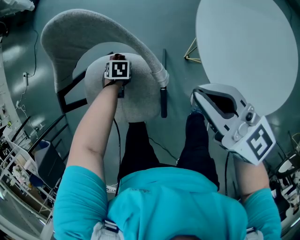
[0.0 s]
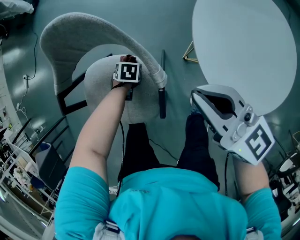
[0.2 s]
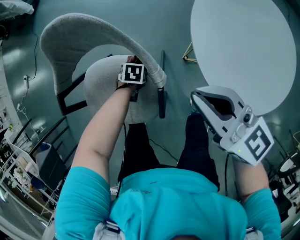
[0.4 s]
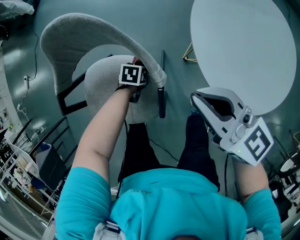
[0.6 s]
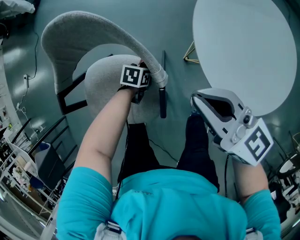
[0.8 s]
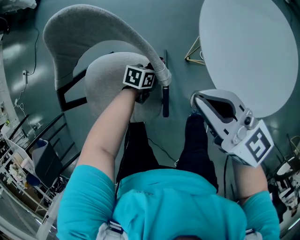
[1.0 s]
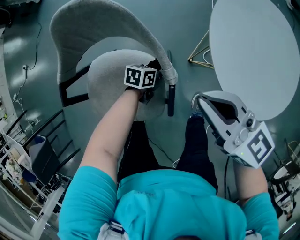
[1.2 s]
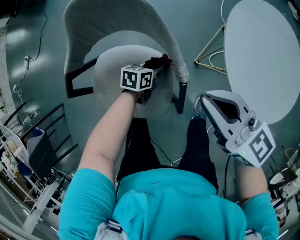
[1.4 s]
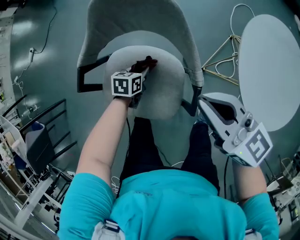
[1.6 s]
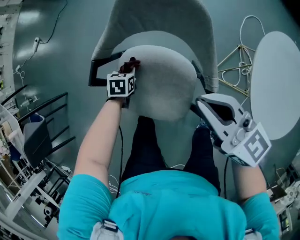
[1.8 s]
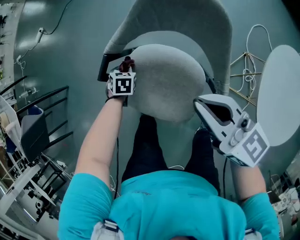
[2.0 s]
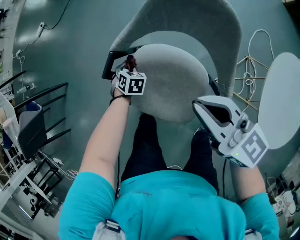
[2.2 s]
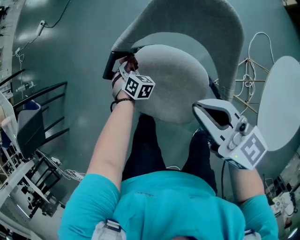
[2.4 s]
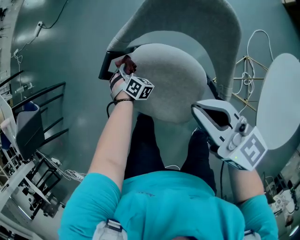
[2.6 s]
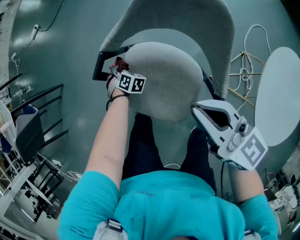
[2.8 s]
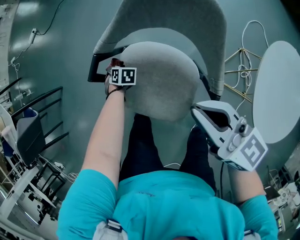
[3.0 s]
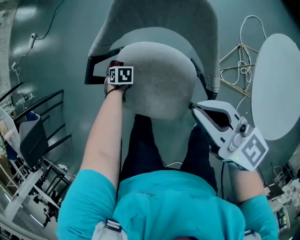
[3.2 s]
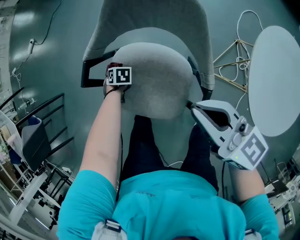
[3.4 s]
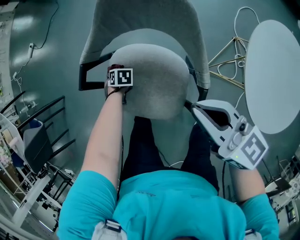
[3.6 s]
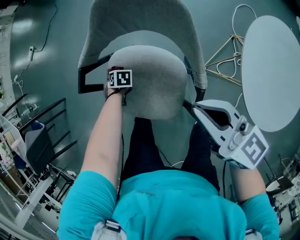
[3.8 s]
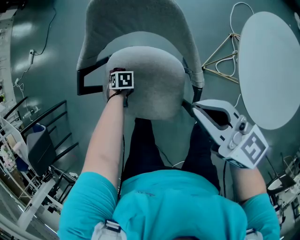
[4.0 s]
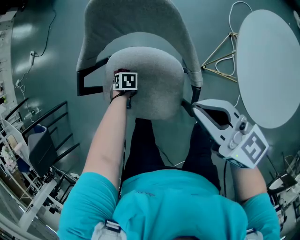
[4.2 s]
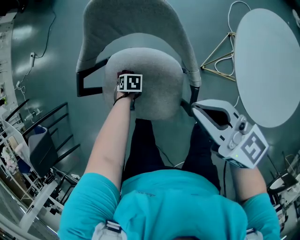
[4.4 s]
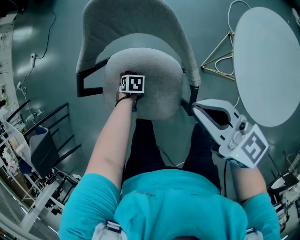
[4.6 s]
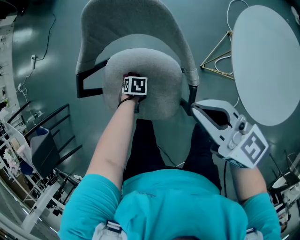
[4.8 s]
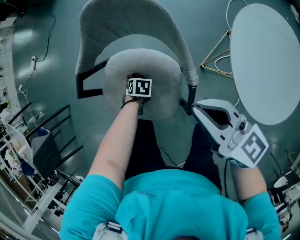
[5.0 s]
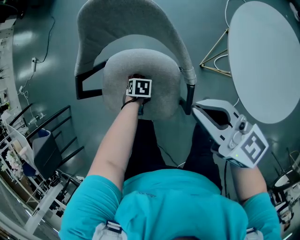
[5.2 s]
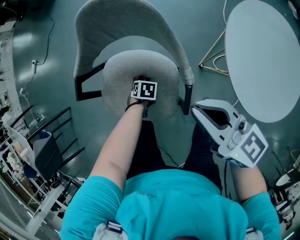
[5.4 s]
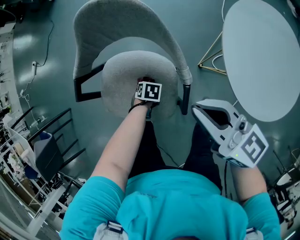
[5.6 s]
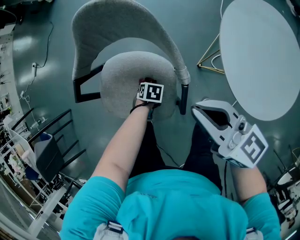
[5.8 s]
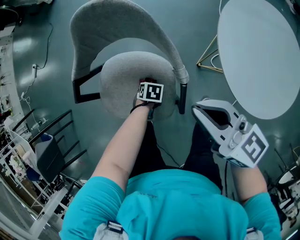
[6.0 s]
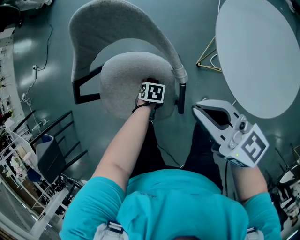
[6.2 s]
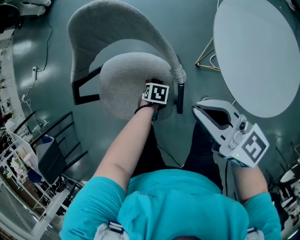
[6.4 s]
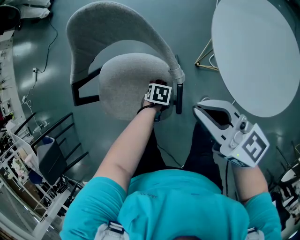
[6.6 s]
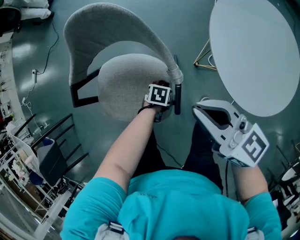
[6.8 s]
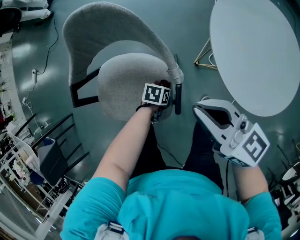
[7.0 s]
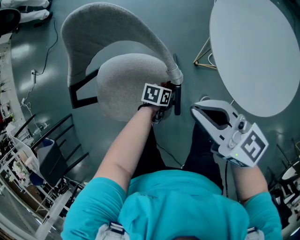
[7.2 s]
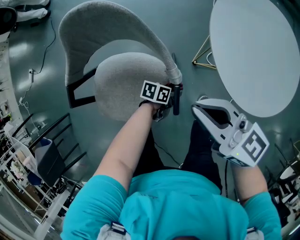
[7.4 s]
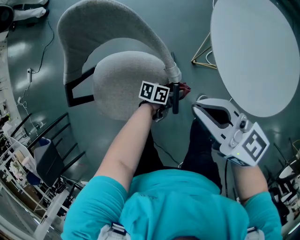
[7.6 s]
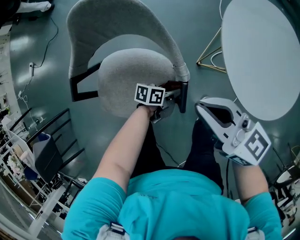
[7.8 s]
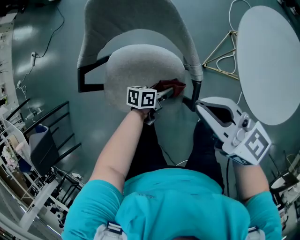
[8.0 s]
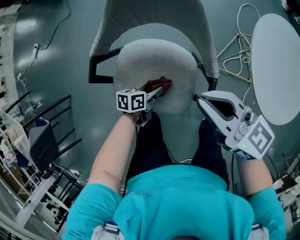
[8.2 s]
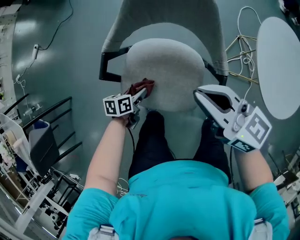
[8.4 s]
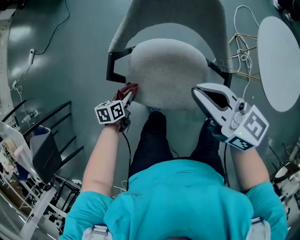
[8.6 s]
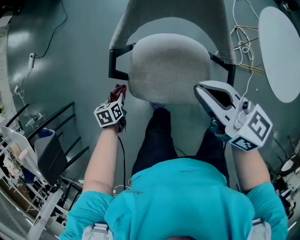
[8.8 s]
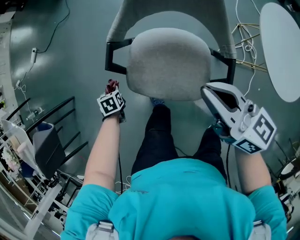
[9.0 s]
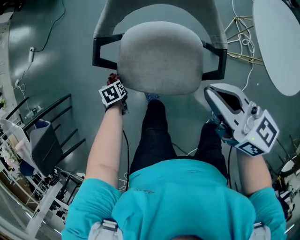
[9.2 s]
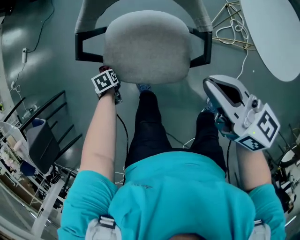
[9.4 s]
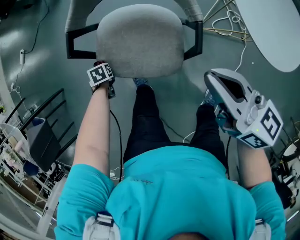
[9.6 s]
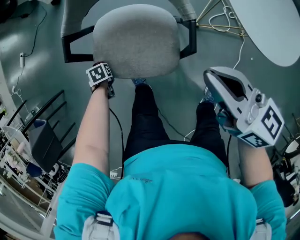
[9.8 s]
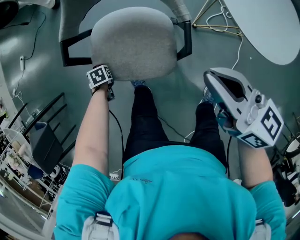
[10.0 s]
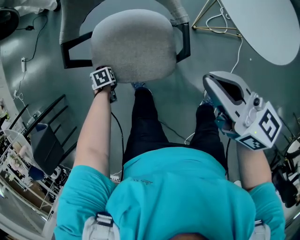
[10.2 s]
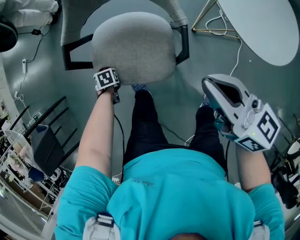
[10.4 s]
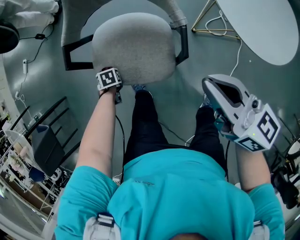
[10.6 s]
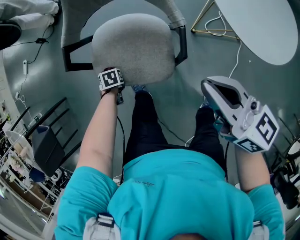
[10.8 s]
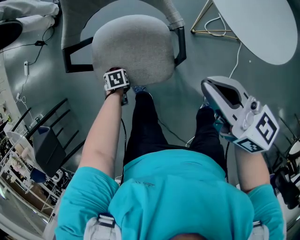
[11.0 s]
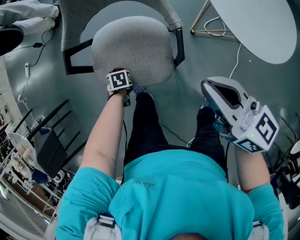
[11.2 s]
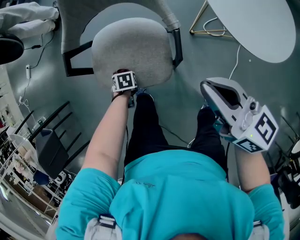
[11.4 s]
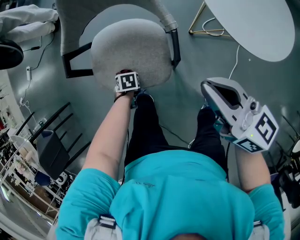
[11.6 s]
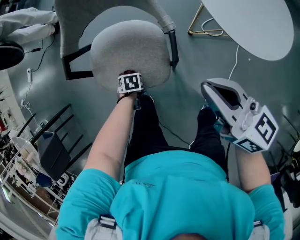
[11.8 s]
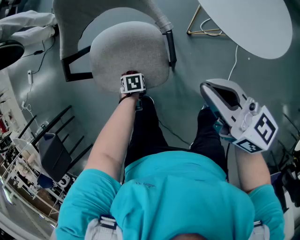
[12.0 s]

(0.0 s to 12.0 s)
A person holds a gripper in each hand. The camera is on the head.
0.0 s - 1.6 s: The right gripper moves about 10 cm, while the left gripper moves upward, roughly 5 cm, and rotates roughly 30 degrees.
1.6 s - 3.0 s: The right gripper moves some 10 cm, while the left gripper moves roughly 25 cm, and turns by roughly 40 degrees.
3.0 s - 4.4 s: The right gripper shifts by roughly 10 cm. The left gripper shifts by about 15 cm.
4.4 s - 6.0 s: The right gripper changes place by some 5 cm; the left gripper changes place by about 15 cm.
6.0 s - 7.6 s: The left gripper moves approximately 15 cm, and tips its fingers upward by roughly 50 degrees.
7.6 s - 9.0 s: The left gripper moves some 60 cm, and tilts its fingers about 40 degrees downward; the right gripper changes place by roughly 20 cm.
9.0 s - 10.4 s: The right gripper ends up some 20 cm from where it was, while the left gripper changes place by roughly 15 cm.
10.4 s - 12.0 s: The left gripper ends up approximately 15 cm from where it was.

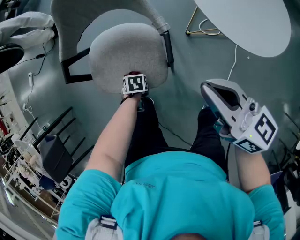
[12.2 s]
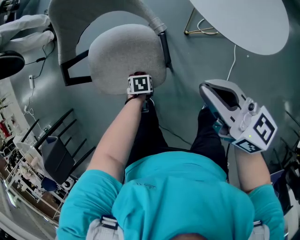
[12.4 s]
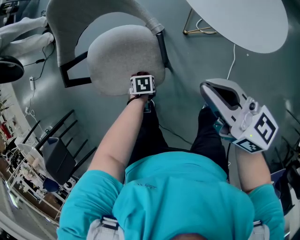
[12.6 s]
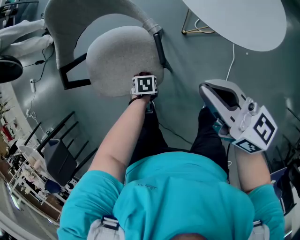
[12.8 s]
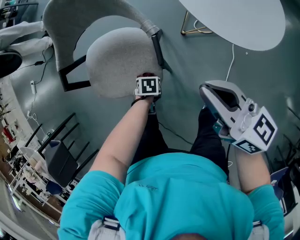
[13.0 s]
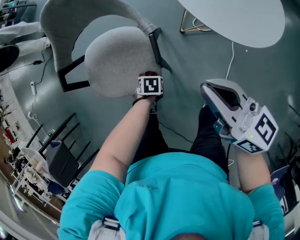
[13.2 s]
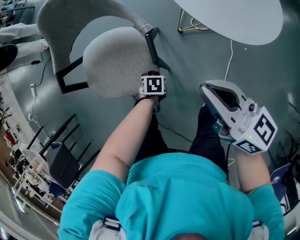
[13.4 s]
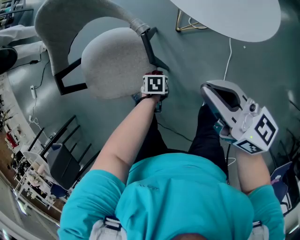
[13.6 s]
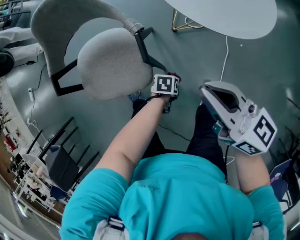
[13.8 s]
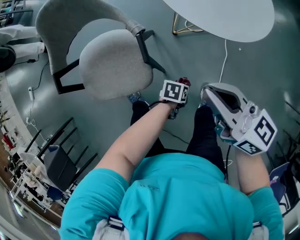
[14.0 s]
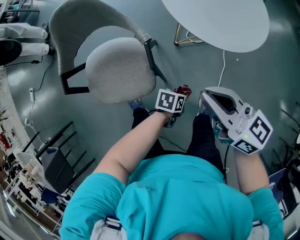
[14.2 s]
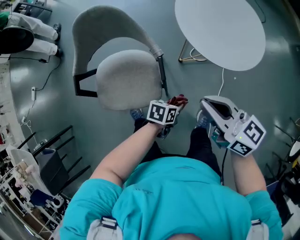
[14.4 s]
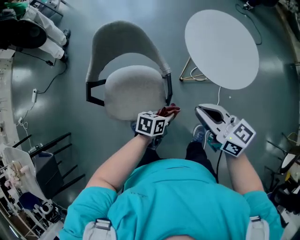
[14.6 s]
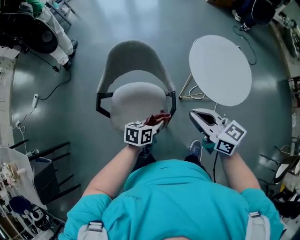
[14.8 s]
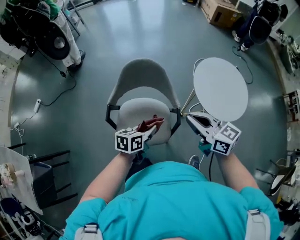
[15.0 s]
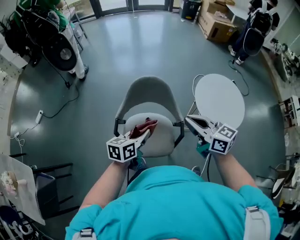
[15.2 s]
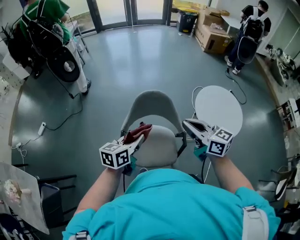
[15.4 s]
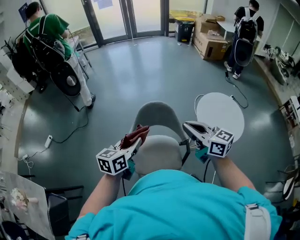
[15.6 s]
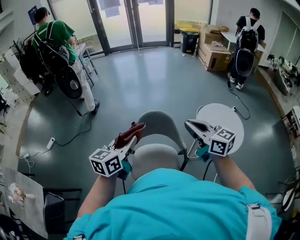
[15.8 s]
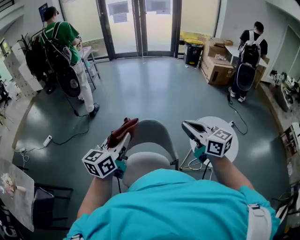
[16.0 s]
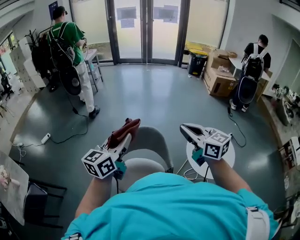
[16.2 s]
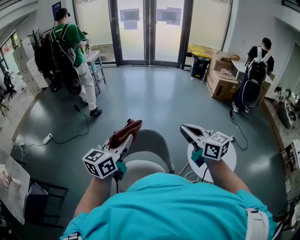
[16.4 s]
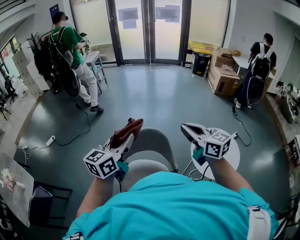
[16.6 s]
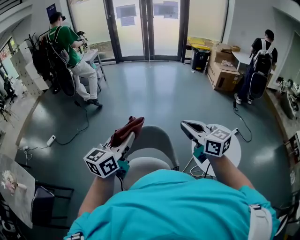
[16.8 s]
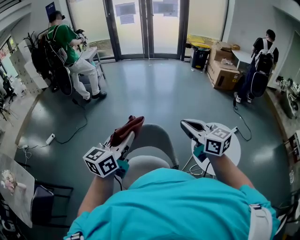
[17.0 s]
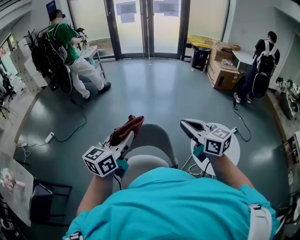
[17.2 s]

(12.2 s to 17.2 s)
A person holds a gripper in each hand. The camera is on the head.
12.2 s - 13.8 s: The left gripper ends up some 25 cm from where it was, and swivels approximately 20 degrees. The right gripper shifts by about 10 cm.
13.8 s - 15.6 s: The left gripper travels upward by some 60 cm, and points its fingers about 50 degrees further upward. The right gripper shifts about 30 cm upward.
15.6 s - 17.2 s: The left gripper moves upward and to the right, approximately 15 cm, and rotates roughly 20 degrees; the right gripper travels upward, to the right and forward by roughly 15 cm.

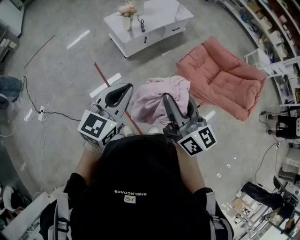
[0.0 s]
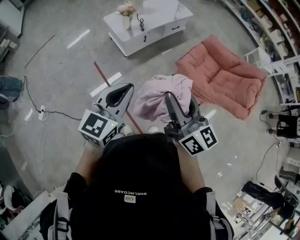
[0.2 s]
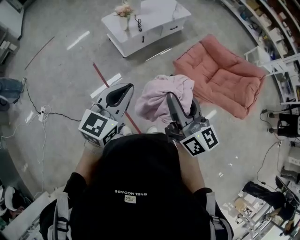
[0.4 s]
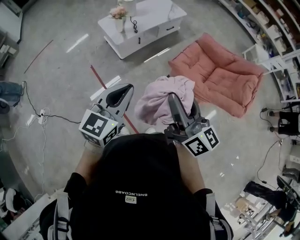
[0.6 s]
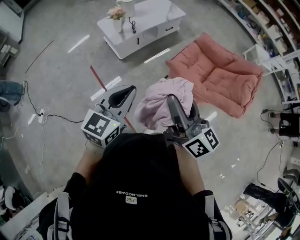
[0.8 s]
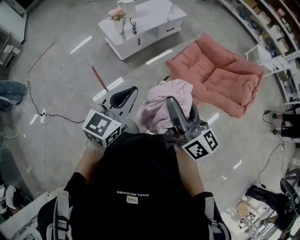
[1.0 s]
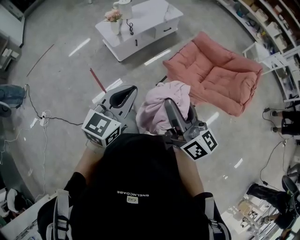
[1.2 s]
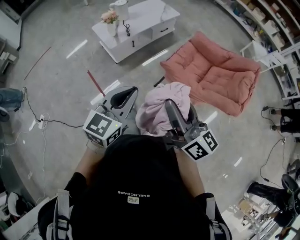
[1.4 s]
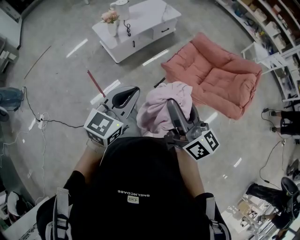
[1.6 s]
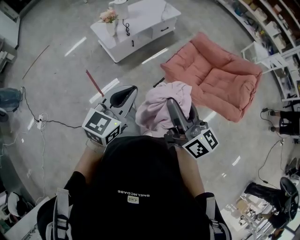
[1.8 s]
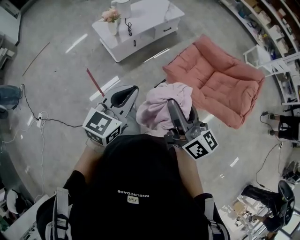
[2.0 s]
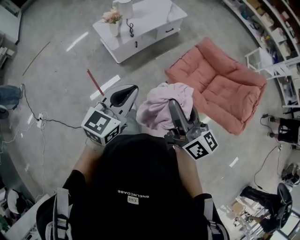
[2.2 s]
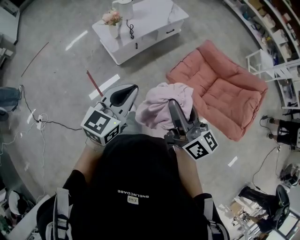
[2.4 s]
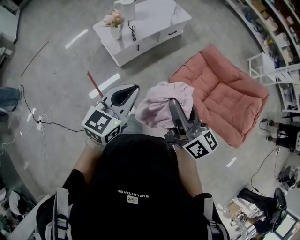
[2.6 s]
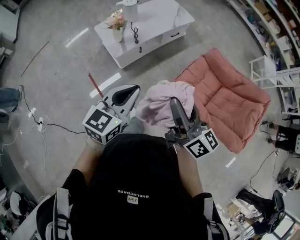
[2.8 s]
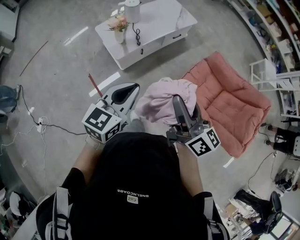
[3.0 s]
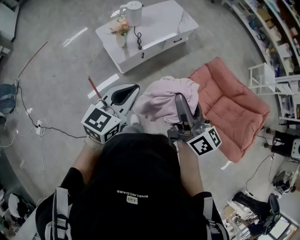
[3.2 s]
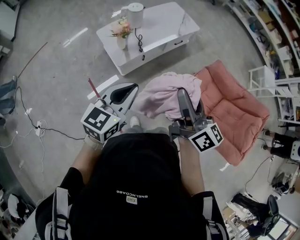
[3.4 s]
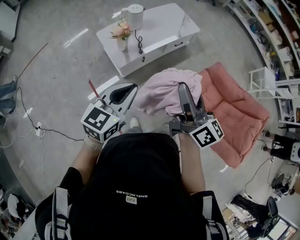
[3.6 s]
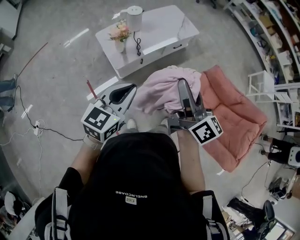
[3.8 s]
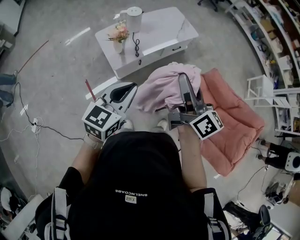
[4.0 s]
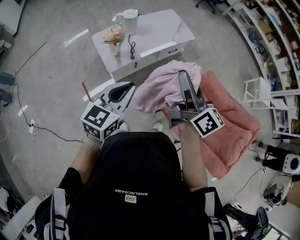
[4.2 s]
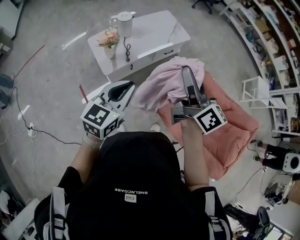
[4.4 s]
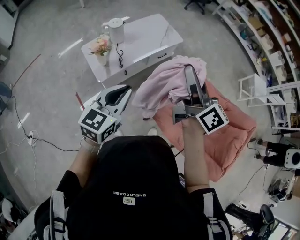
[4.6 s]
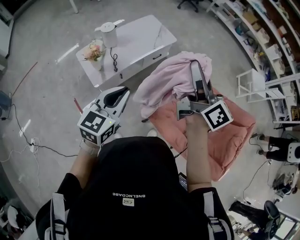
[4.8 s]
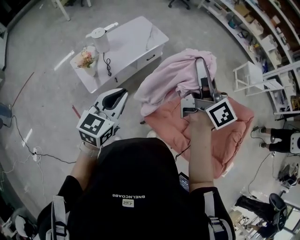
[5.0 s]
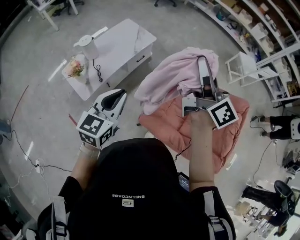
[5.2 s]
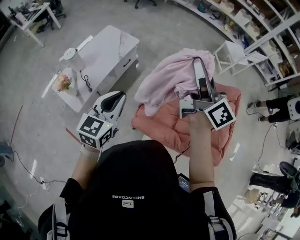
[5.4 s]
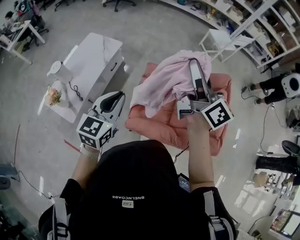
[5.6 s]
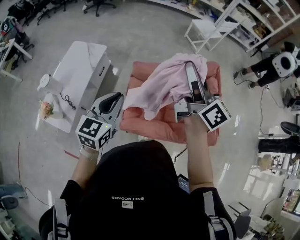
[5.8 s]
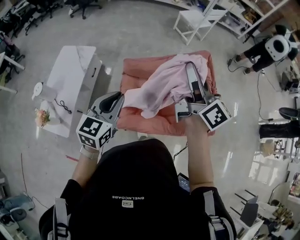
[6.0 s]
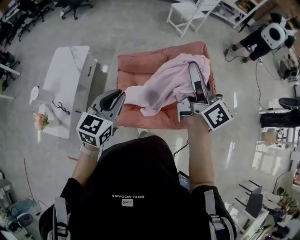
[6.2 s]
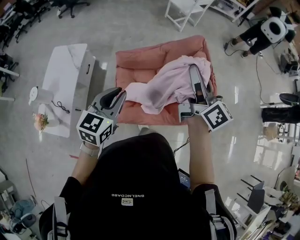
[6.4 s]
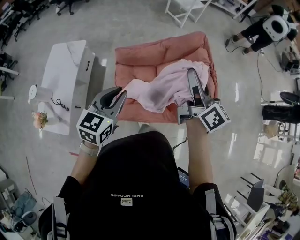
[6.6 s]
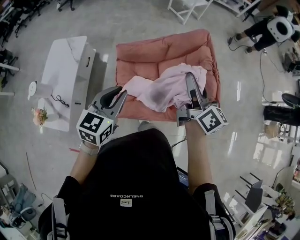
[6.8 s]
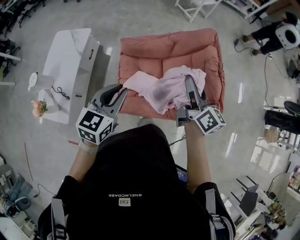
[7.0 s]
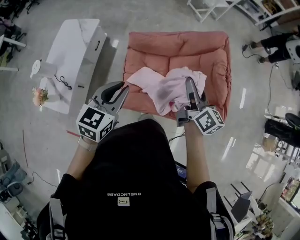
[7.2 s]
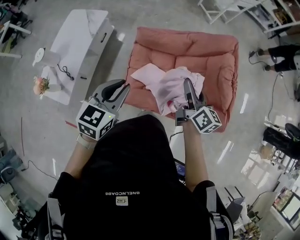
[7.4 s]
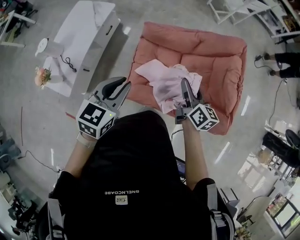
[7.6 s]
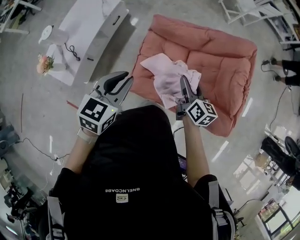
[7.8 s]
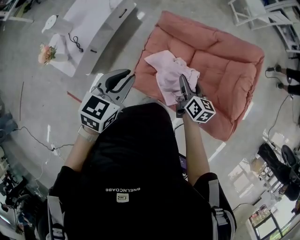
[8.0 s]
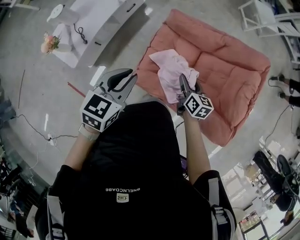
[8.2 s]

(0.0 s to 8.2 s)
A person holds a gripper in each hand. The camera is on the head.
0.0 s - 1.6 s: Both grippers move to the right, roughly 15 cm.
1.6 s - 3.2 s: The two grippers go some 40 cm forward and to the left.
3.2 s - 5.0 s: The right gripper is displaced to the right, forward and upward by about 35 cm, while the left gripper goes roughly 25 cm to the right and forward.
5.0 s - 6.6 s: The left gripper ends up some 30 cm from where it was, and changes its angle by roughly 40 degrees. The right gripper shifts by some 40 cm, and changes its angle by some 40 degrees.
6.6 s - 8.2 s: The left gripper shifts approximately 10 cm downward, and swivels approximately 30 degrees. Meanwhile the right gripper is displaced downward by some 35 cm, and points its fingers some 40 degrees further downward.
